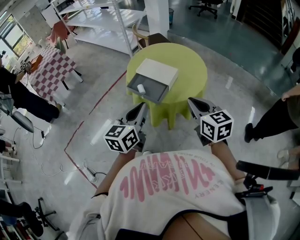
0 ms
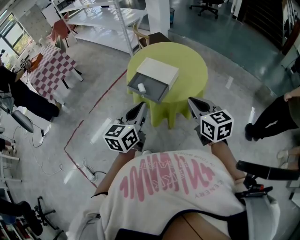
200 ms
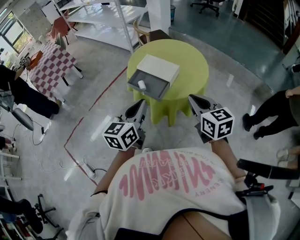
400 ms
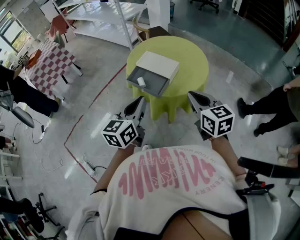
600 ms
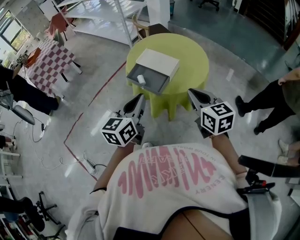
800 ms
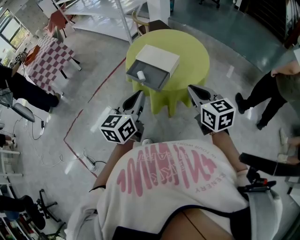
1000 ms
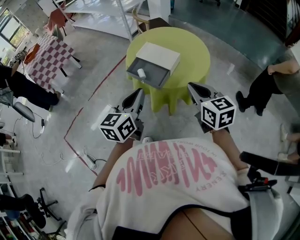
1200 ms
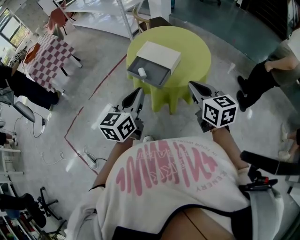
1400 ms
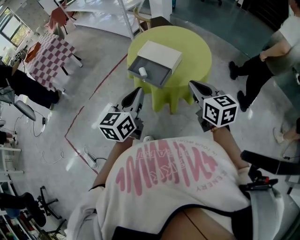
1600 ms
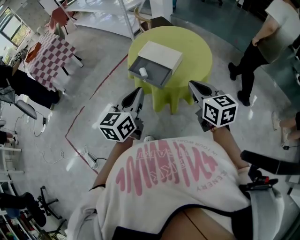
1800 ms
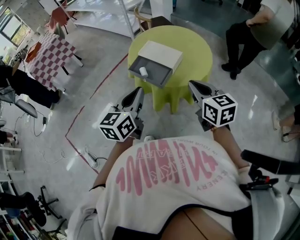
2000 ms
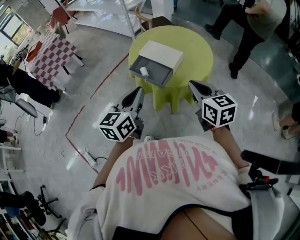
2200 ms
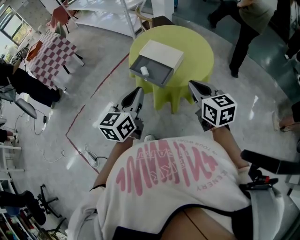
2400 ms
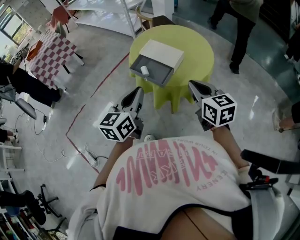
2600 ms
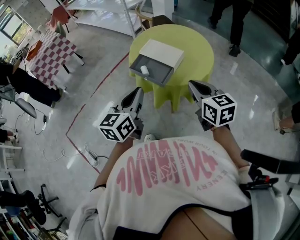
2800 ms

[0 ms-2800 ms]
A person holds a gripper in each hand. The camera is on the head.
0 ms to 1400 ms: The grippers move only a little.
1400 ms to 2800 ms: Both grippers stay about where they are.

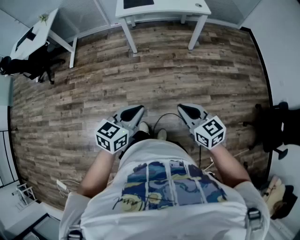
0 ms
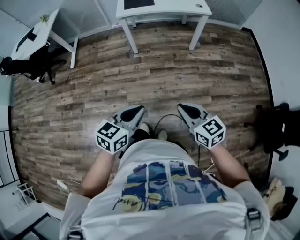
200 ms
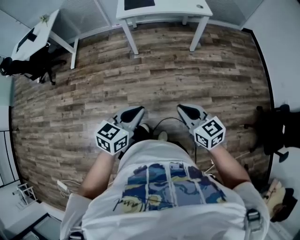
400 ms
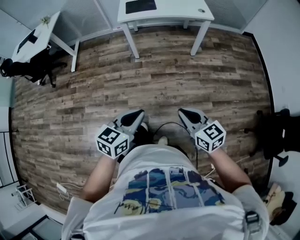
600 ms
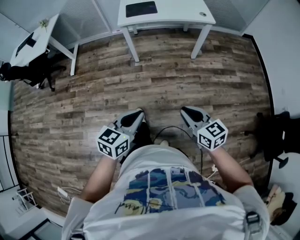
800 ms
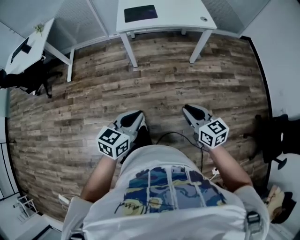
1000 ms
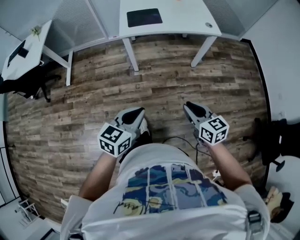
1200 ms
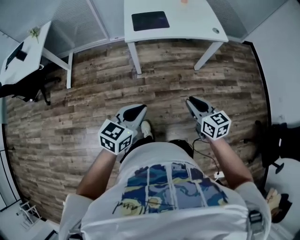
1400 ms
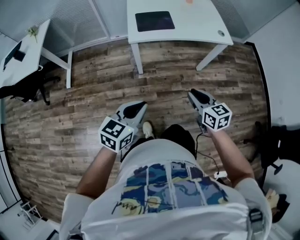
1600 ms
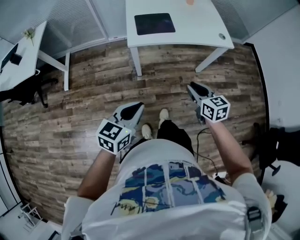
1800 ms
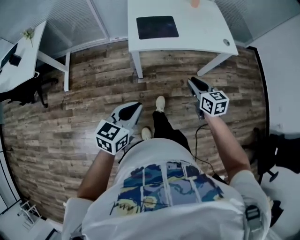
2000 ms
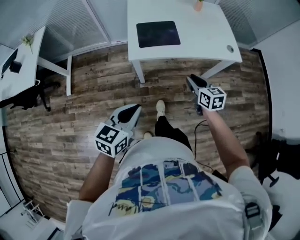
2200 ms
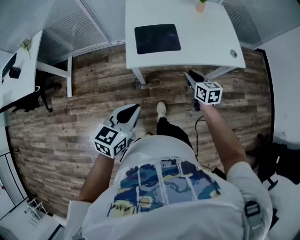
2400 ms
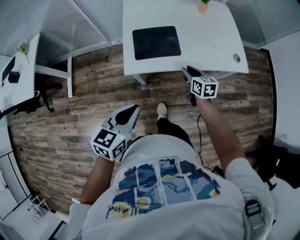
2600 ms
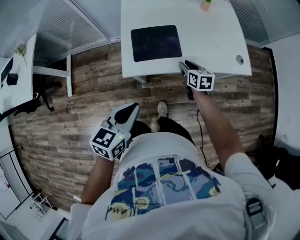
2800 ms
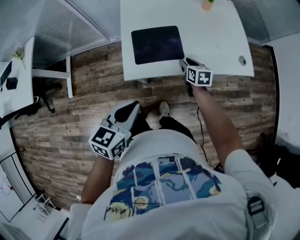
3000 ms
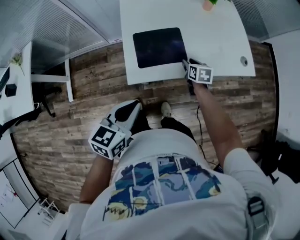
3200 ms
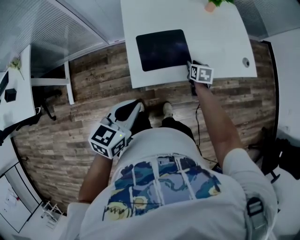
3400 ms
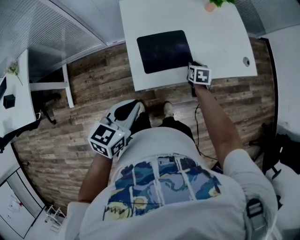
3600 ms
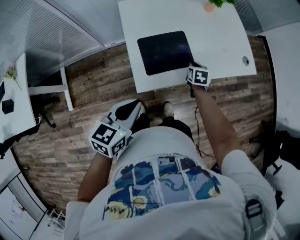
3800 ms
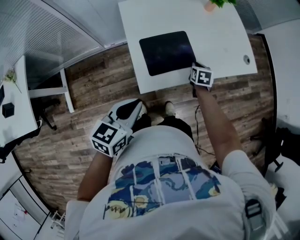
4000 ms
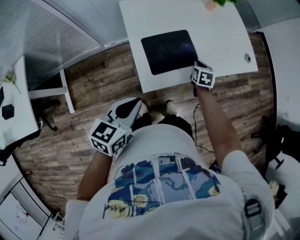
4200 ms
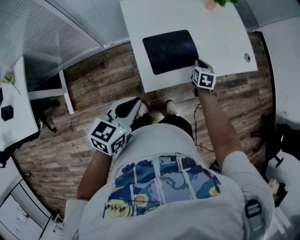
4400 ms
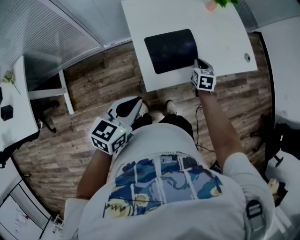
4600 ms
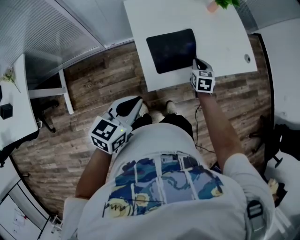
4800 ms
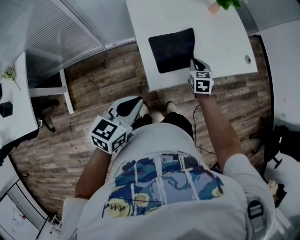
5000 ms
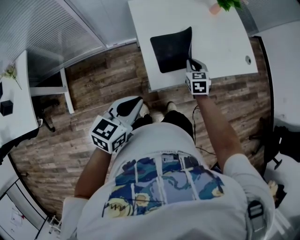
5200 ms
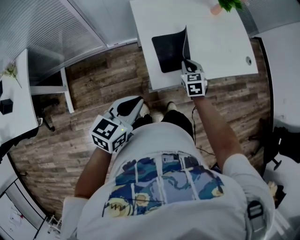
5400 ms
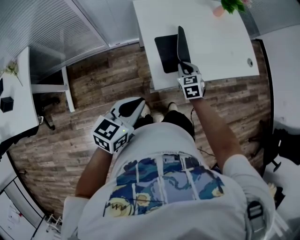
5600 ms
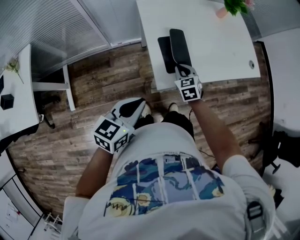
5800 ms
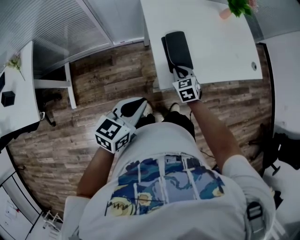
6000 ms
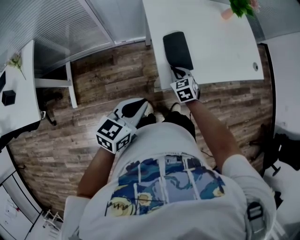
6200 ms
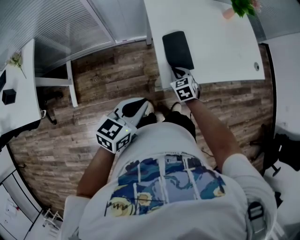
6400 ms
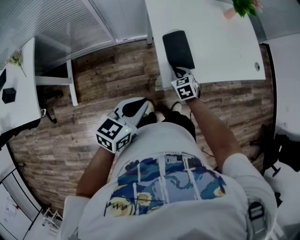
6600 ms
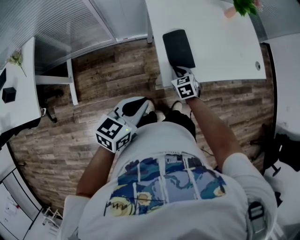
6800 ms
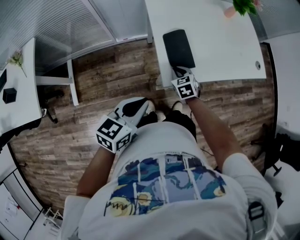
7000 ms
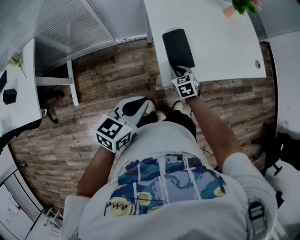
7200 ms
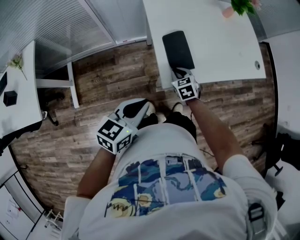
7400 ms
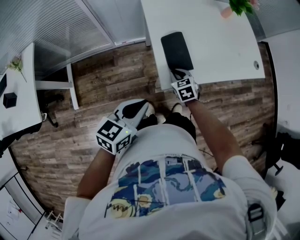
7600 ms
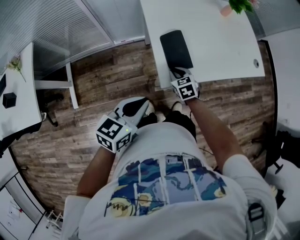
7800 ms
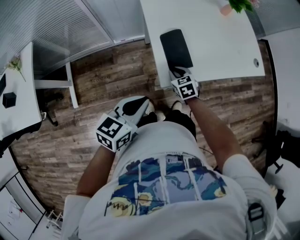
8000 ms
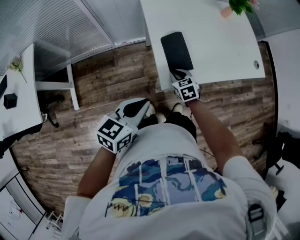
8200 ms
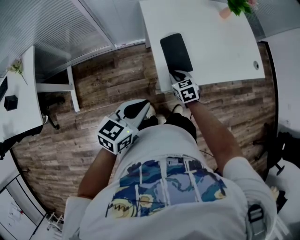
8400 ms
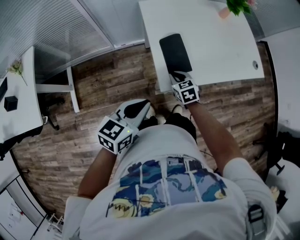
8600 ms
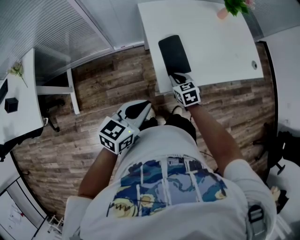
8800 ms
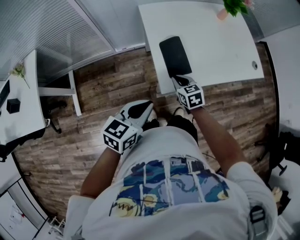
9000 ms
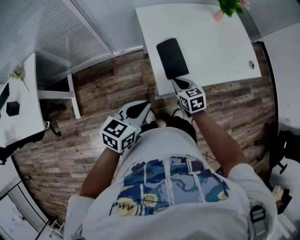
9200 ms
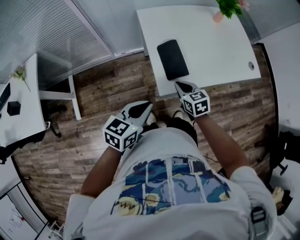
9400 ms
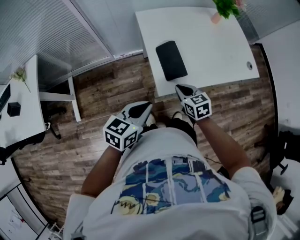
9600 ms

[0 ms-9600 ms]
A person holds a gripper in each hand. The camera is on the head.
0 ms to 1600 ms: The two grippers travel together, forward and to the left, approximately 40 cm.
1600 ms to 3200 ms: The two grippers travel together, forward, about 50 cm. The right gripper changes its angle by some 30 degrees.
3200 ms to 4800 ms: The right gripper moves to the left, some 5 cm, turns by about 20 degrees, and closes its fingers; the left gripper travels to the left by some 15 cm.
4800 ms to 6400 ms: The right gripper moves to the left and backward, roughly 20 cm, and changes its angle by approximately 30 degrees. The left gripper changes place by approximately 5 cm.
6400 ms to 8000 ms: There are only small adjustments of the grippers.
8000 ms to 9600 ms: The right gripper is displaced upward by approximately 10 cm.

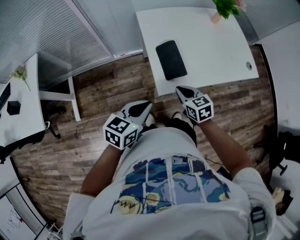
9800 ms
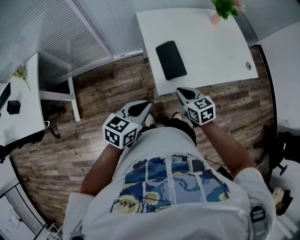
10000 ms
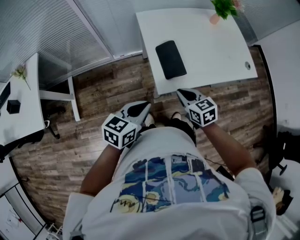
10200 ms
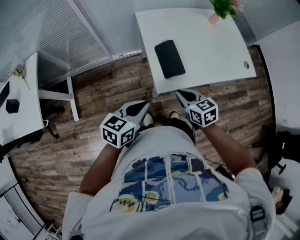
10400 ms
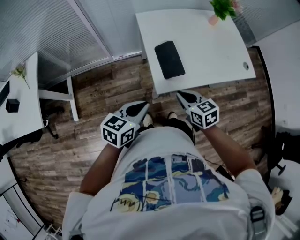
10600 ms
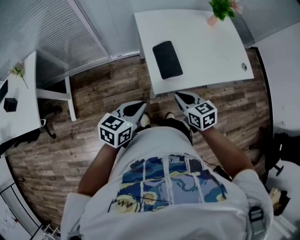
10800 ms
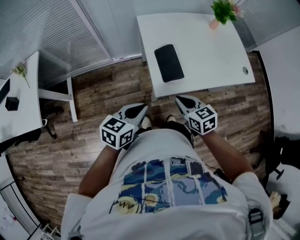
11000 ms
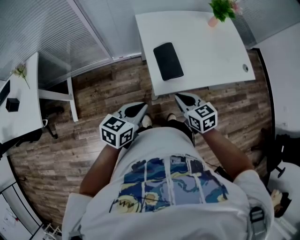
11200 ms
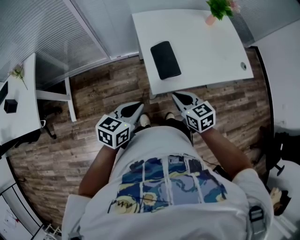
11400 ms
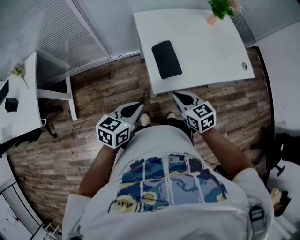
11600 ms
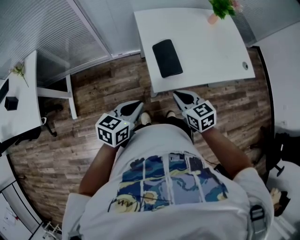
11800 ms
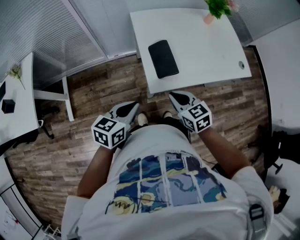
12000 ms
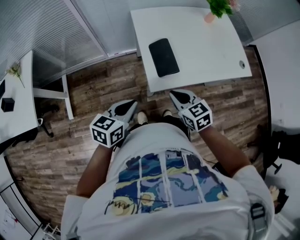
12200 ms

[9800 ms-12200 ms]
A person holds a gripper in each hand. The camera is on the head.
9800 ms to 11000 ms: The right gripper shifts by some 5 cm.
11000 ms to 12200 ms: There are only small adjustments of the grippers.

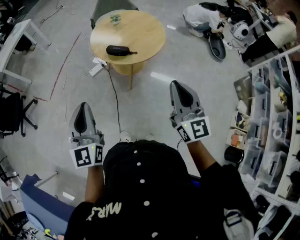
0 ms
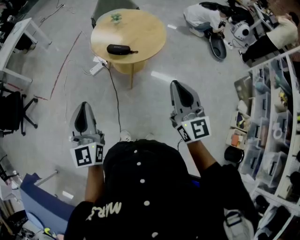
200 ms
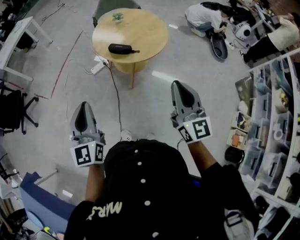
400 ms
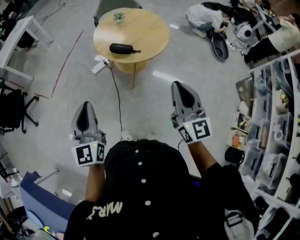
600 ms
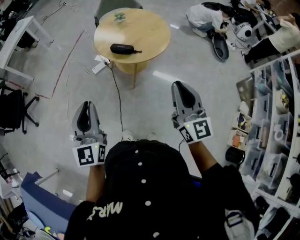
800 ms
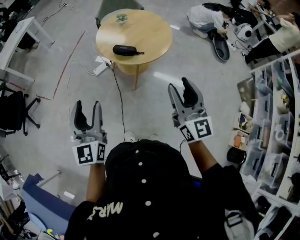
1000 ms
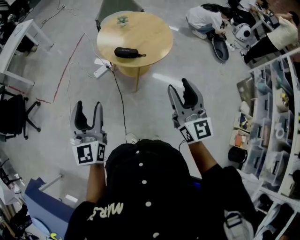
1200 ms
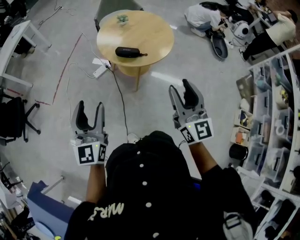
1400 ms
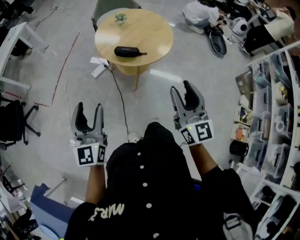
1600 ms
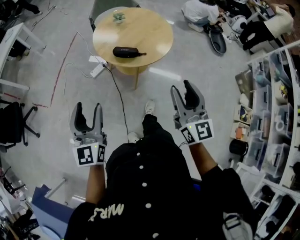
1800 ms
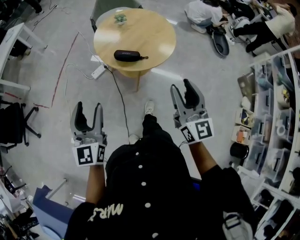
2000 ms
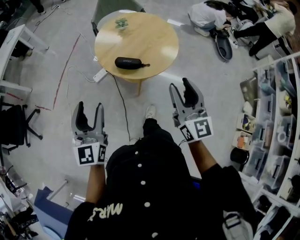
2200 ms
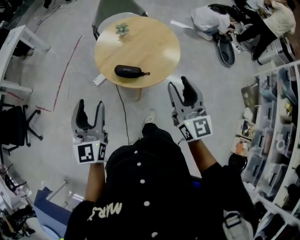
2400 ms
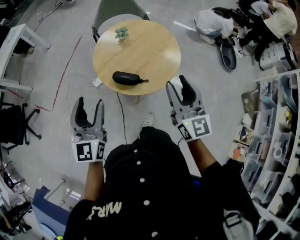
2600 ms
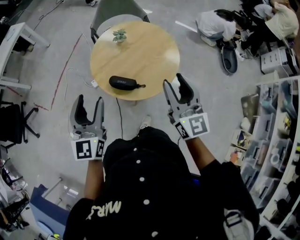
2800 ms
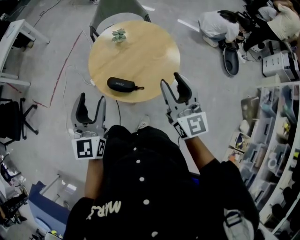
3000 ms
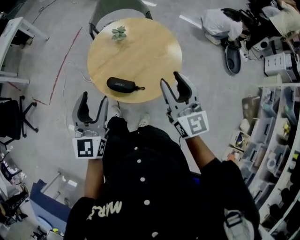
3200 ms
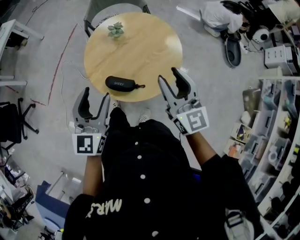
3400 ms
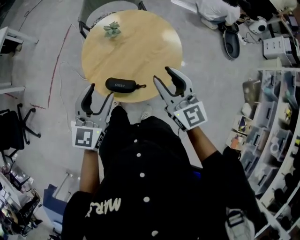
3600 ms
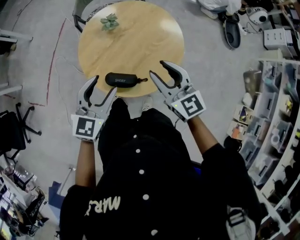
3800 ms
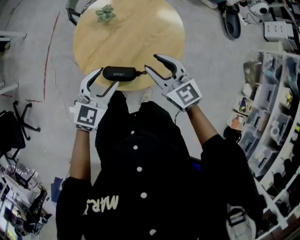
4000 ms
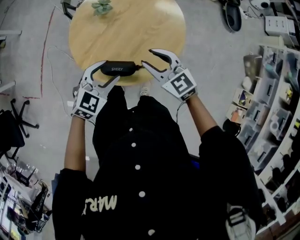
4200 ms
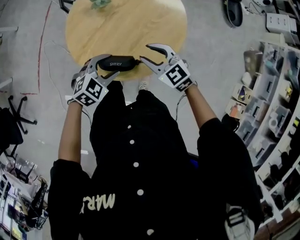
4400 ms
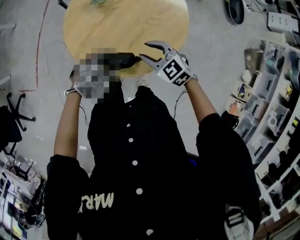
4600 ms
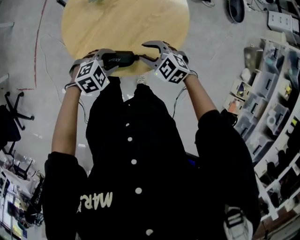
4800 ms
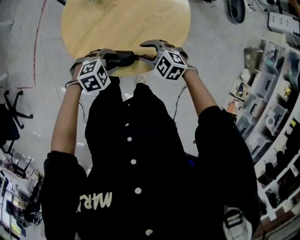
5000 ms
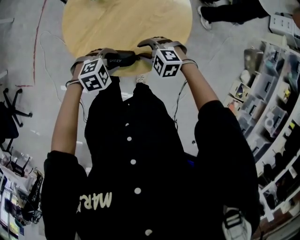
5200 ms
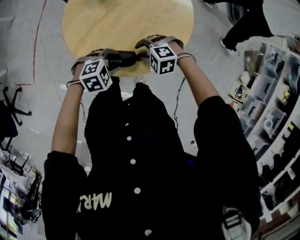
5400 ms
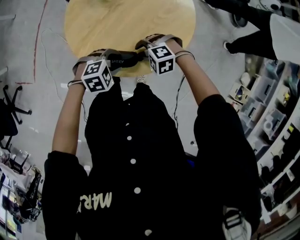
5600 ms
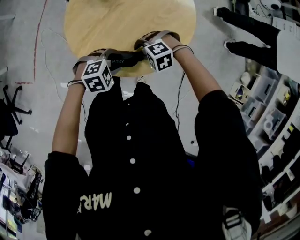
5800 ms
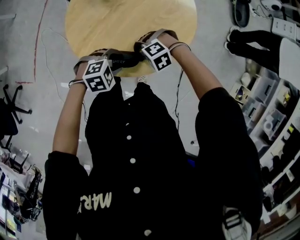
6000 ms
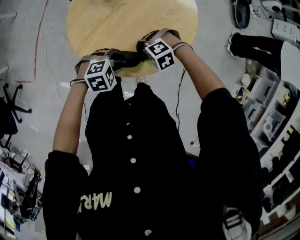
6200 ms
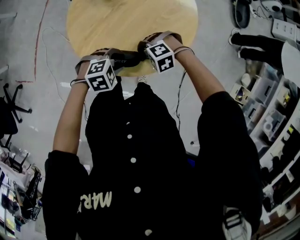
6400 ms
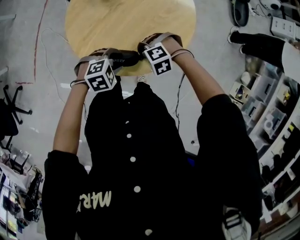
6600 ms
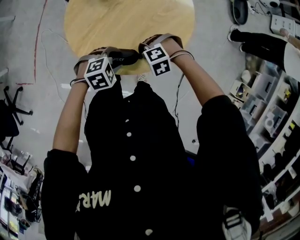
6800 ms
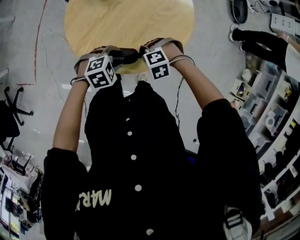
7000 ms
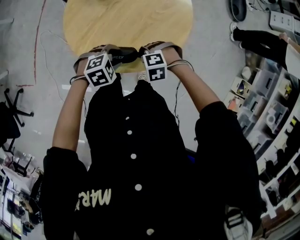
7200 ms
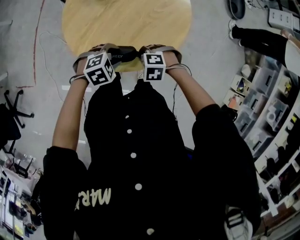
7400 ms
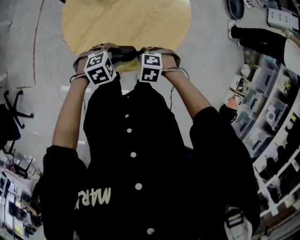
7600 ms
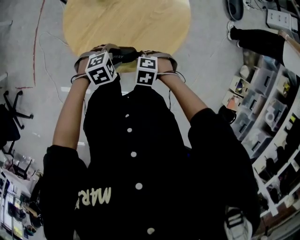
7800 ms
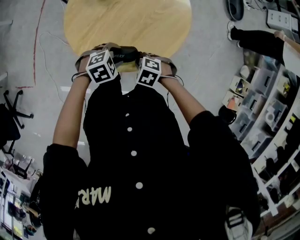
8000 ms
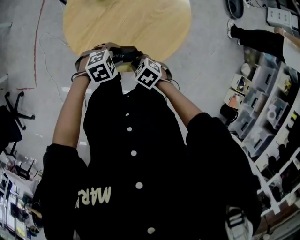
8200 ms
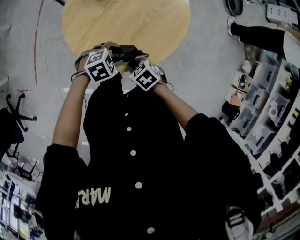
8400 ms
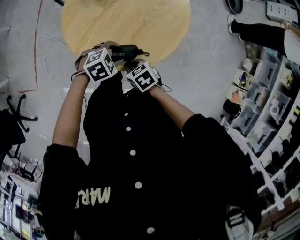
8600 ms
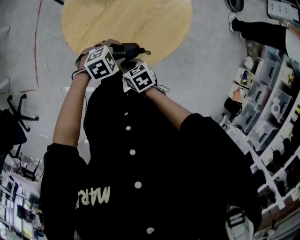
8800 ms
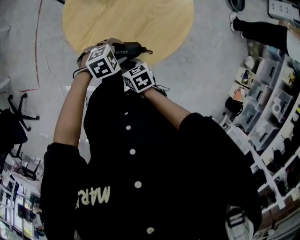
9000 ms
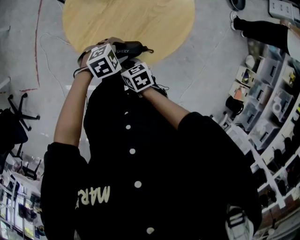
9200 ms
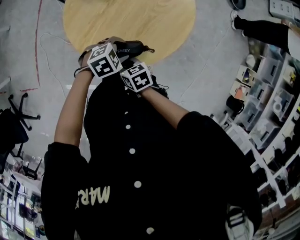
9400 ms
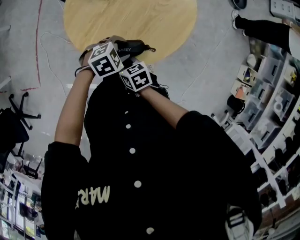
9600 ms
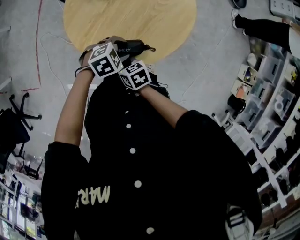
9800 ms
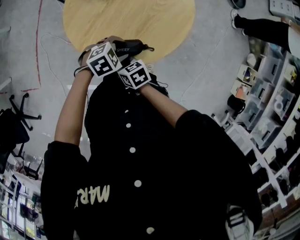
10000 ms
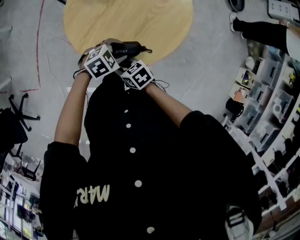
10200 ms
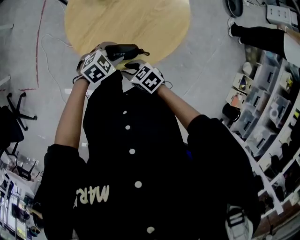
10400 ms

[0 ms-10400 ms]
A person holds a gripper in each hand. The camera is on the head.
0 ms to 1400 ms: The right gripper shifts about 10 cm to the left, and opens its fingers; the left gripper heads to the left and forward, covering roughly 10 cm, and opens up.
1400 ms to 3000 ms: The two grippers go about 40 cm forward.
3000 ms to 4400 ms: The two grippers go some 30 cm downward and forward. The left gripper angles its fingers downward, by about 40 degrees; the right gripper angles its fingers downward, by approximately 40 degrees.
4400 ms to 6000 ms: The left gripper shifts roughly 10 cm downward, and swivels roughly 20 degrees. Meanwhile the right gripper is displaced downward by approximately 15 cm, and tips its fingers downward by about 30 degrees.
6000 ms to 7400 ms: The right gripper swivels approximately 40 degrees.
7400 ms to 9000 ms: The right gripper ends up approximately 10 cm from where it was, and rotates around the line of its fingers by roughly 70 degrees, clockwise from behind.
9000 ms to 10400 ms: The right gripper changes place by approximately 5 cm, rotates some 20 degrees, and opens up.
